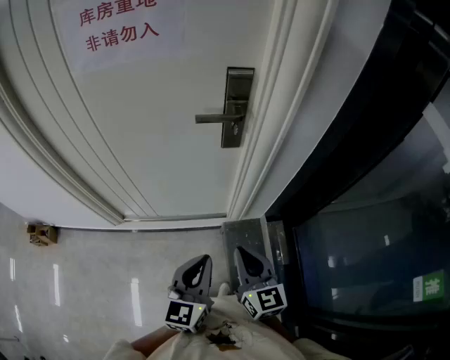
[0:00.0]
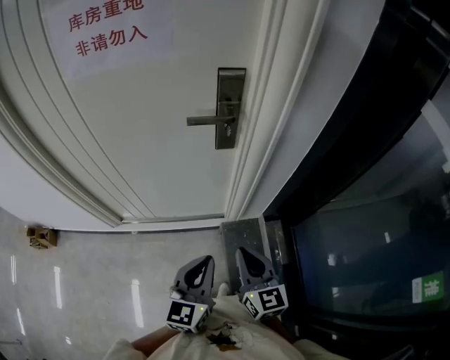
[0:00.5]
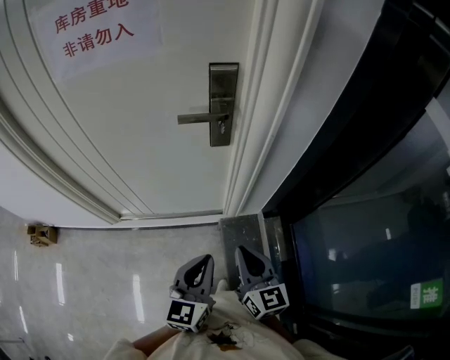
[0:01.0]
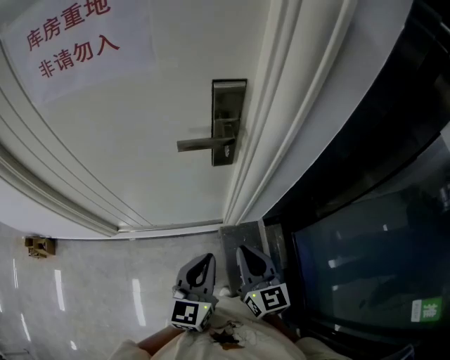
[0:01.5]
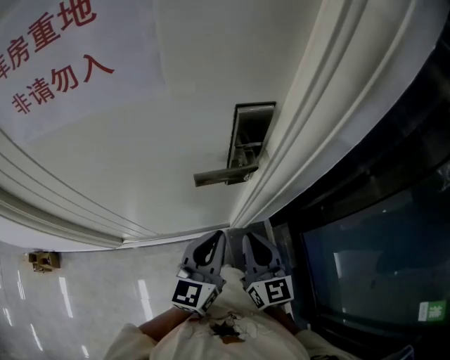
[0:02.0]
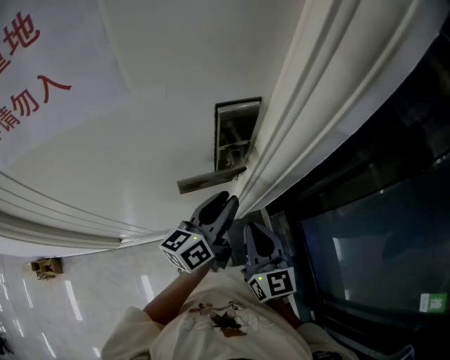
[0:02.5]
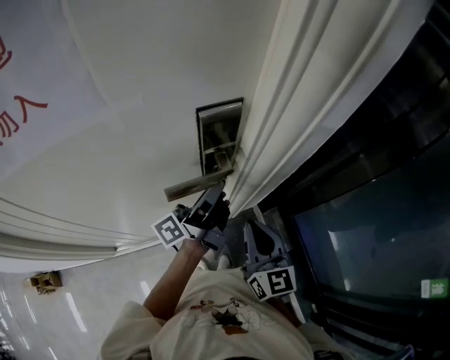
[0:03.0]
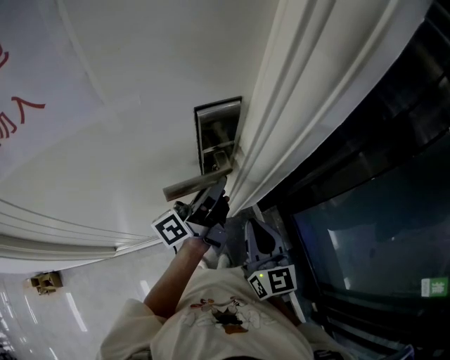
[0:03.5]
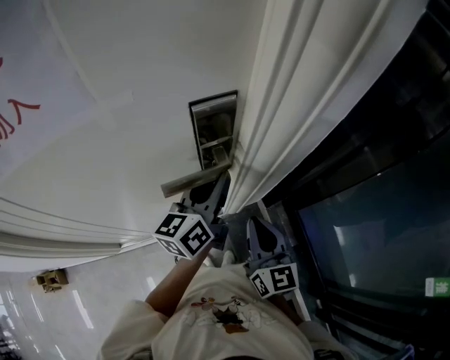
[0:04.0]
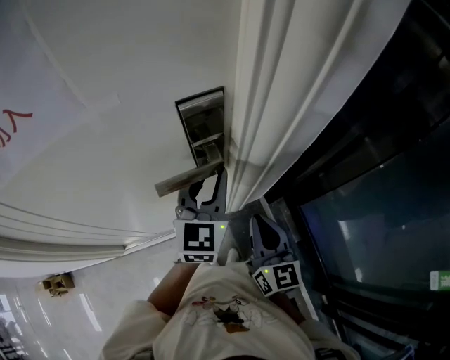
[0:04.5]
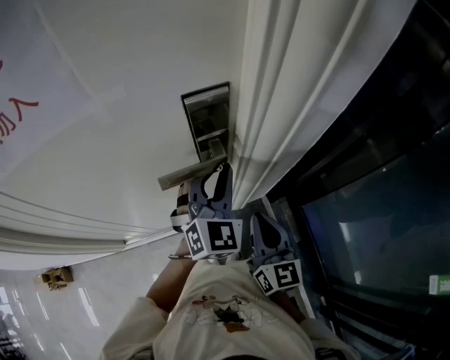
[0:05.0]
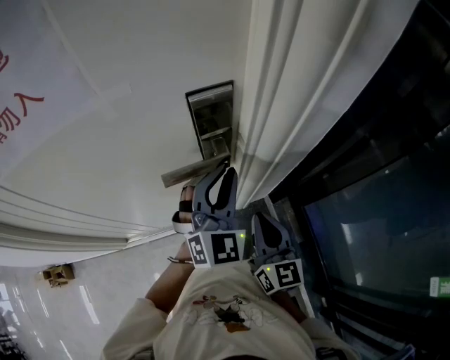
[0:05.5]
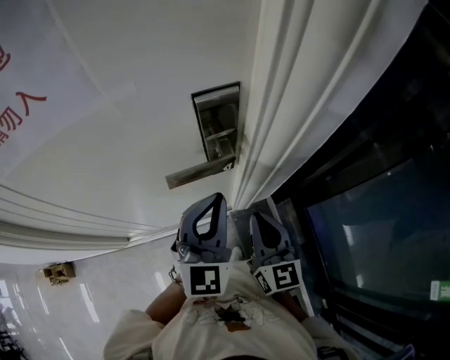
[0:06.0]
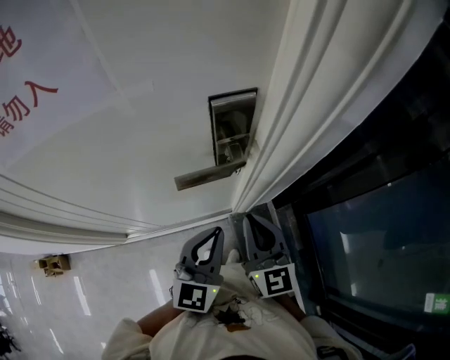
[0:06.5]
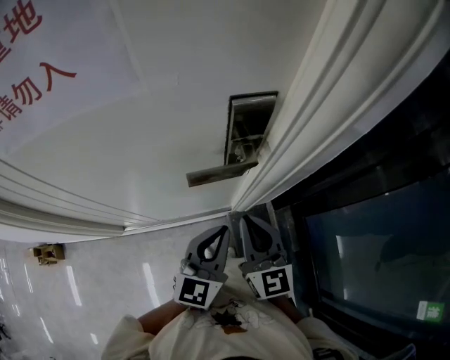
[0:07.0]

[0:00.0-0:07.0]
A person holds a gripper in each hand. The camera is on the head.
0:00.0 to 0:02.0: Both grippers move forward, roughly 20 cm.
0:02.0 to 0:03.5: The left gripper travels forward by about 15 cm, rotates around the line of its fingers by approximately 60 degrees, counterclockwise from behind, and opens its fingers; the right gripper ends up roughly 5 cm from where it was.
0:03.5 to 0:05.0: The left gripper twists roughly 100 degrees clockwise, seen from behind.
0:05.0 to 0:07.0: The right gripper goes approximately 10 cm to the left. The left gripper shifts about 15 cm backward, and rotates roughly 40 degrees.

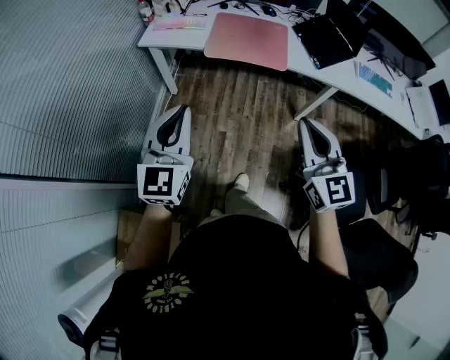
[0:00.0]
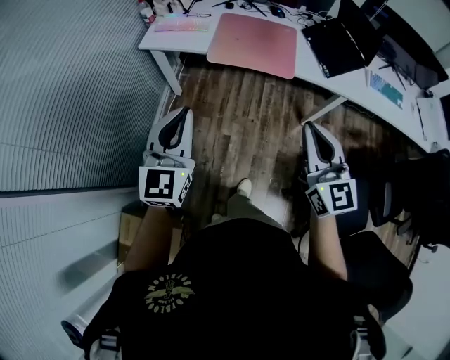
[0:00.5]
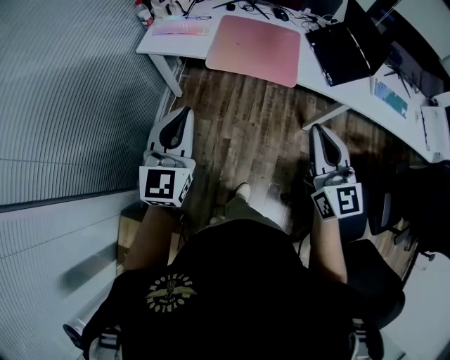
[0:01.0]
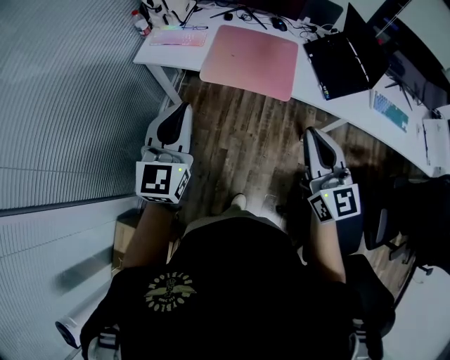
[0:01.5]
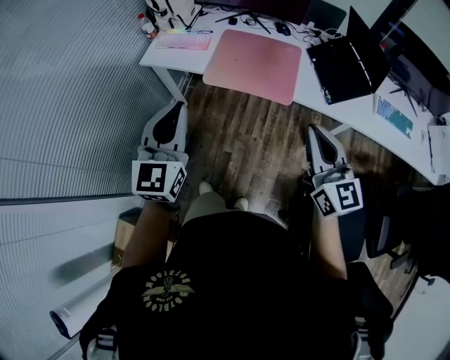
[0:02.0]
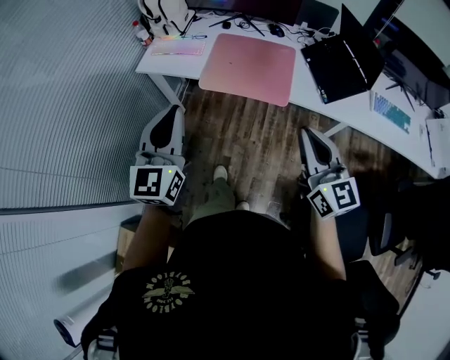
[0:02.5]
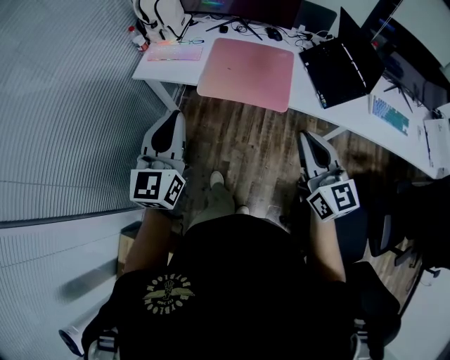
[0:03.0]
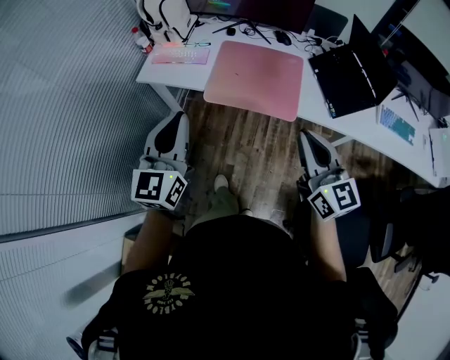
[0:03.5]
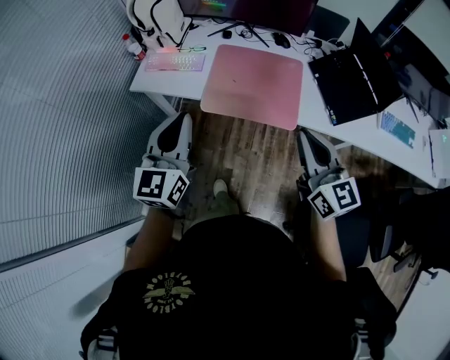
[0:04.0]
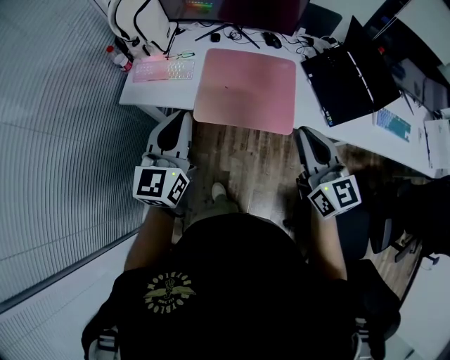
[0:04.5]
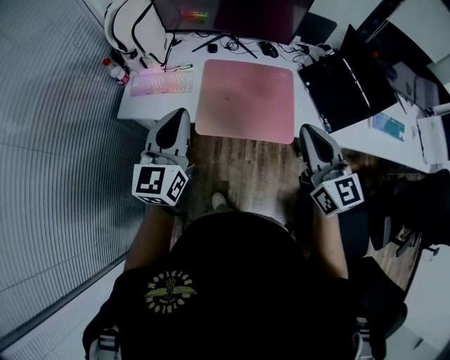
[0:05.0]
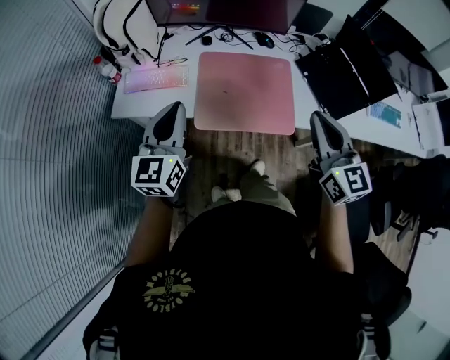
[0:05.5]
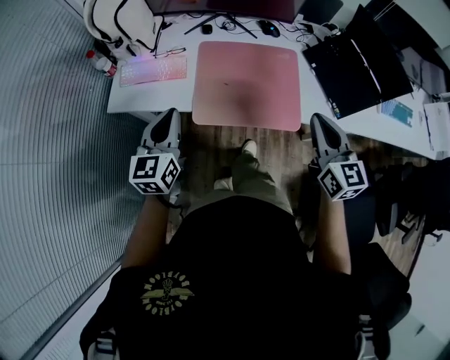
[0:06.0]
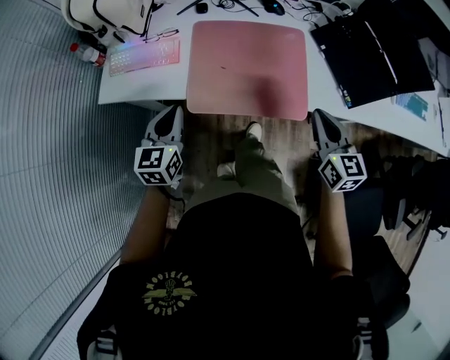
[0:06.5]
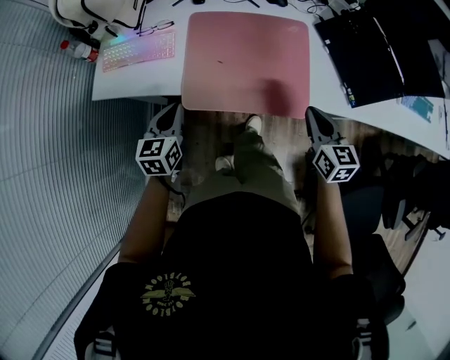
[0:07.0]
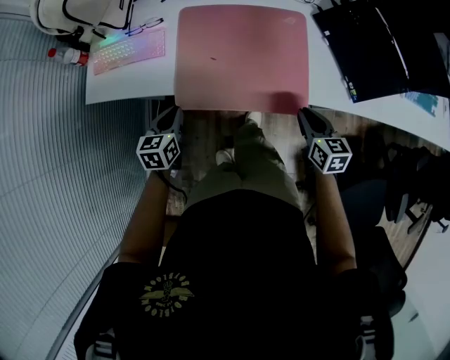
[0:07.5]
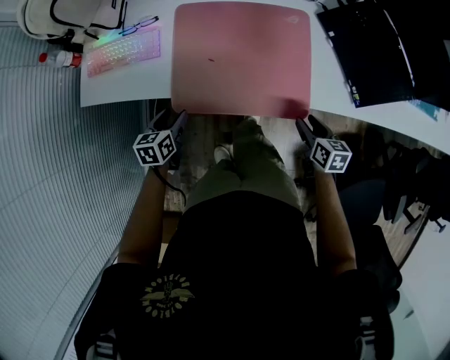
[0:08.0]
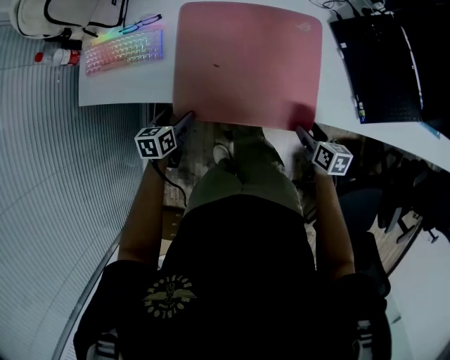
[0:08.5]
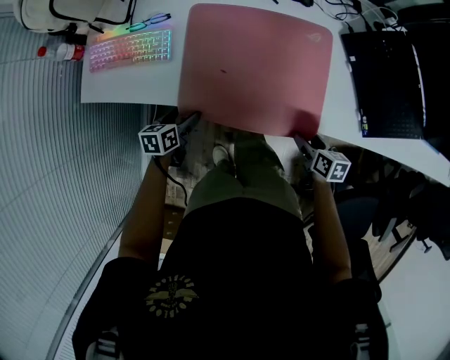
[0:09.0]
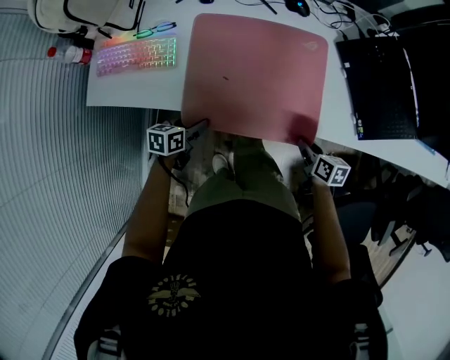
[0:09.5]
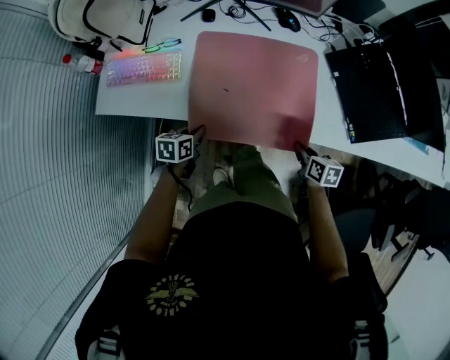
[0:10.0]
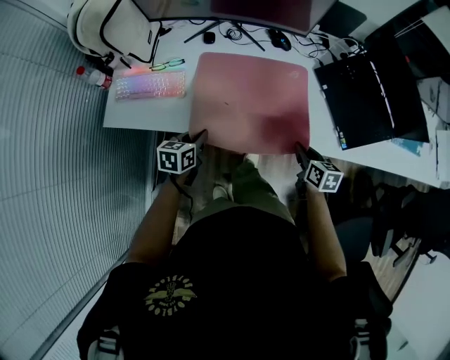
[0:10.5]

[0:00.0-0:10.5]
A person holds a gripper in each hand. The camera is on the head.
0:00.0 to 0:02.0: Both grippers move forward and to the right, approximately 20 cm.
0:02.0 to 0:04.0: The two grippers go about 15 cm forward.
0:04.0 to 0:06.5: Both grippers travel together downward and forward, about 25 cm. The left gripper changes its angle by approximately 20 degrees. The right gripper swivels approximately 20 degrees.
0:06.5 to 0:08.5: The grippers both shift downward by about 25 cm. The right gripper rotates approximately 40 degrees, and opens its fingers; the left gripper changes its angle by roughly 40 degrees, and opens up.
0:08.5 to 0:10.5: The two grippers go about 10 cm upward. The left gripper closes its fingers, while the right gripper closes its fingers.

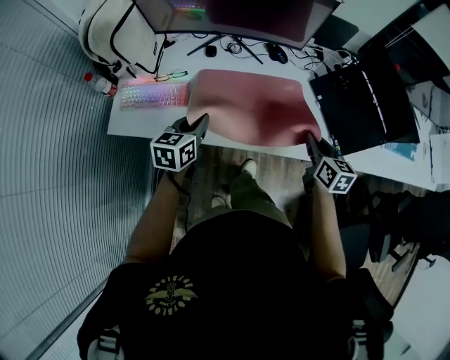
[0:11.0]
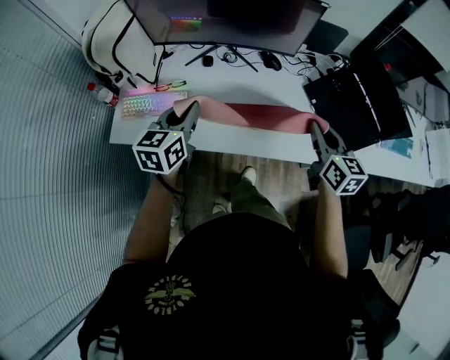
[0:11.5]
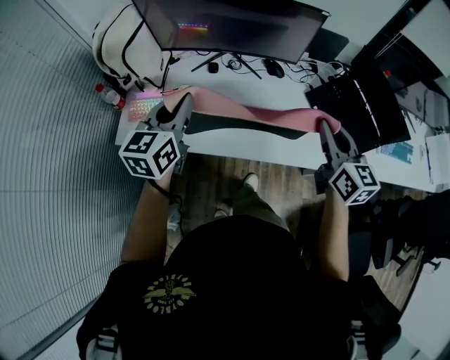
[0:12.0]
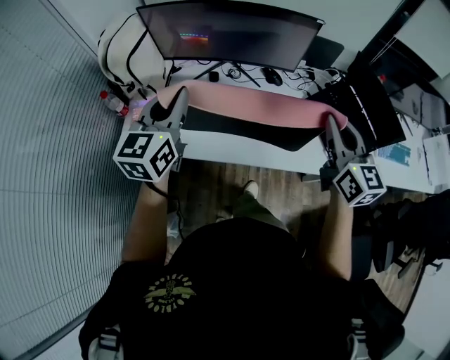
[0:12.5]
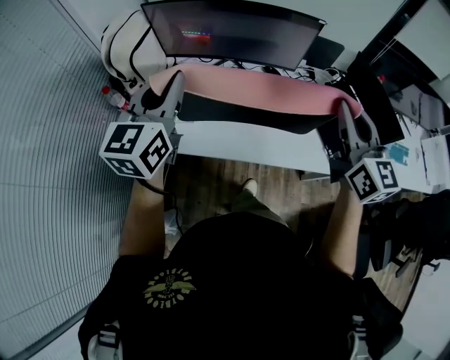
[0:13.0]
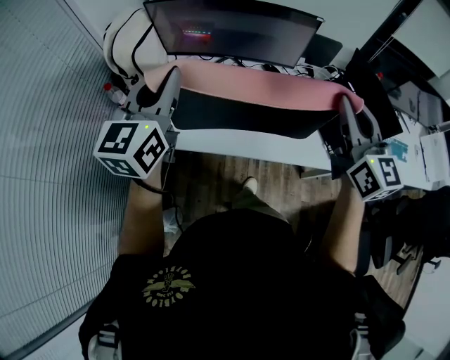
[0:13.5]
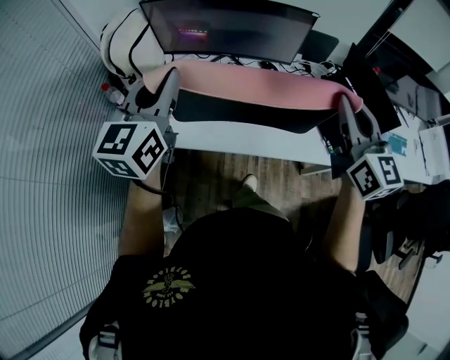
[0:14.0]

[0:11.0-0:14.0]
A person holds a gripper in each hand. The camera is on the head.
0:11.0 to 0:12.5: The two grippers go approximately 25 cm upward. The right gripper changes its angle by roughly 30 degrees. Meanwhile the left gripper swivels roughly 30 degrees.
0:12.5 to 0:14.0: Both grippers move upward, about 10 cm.

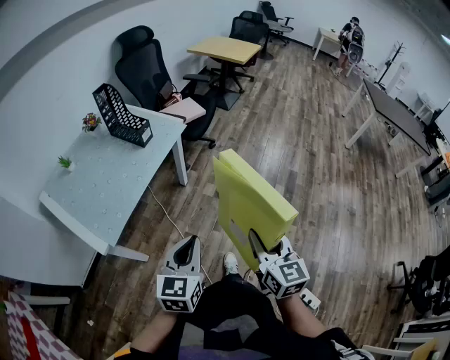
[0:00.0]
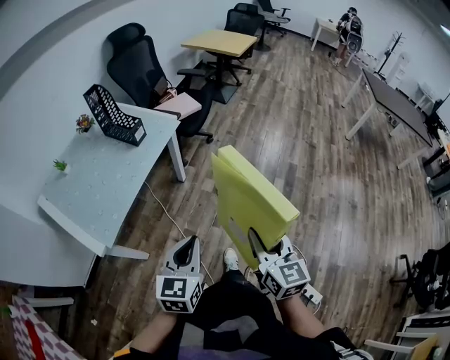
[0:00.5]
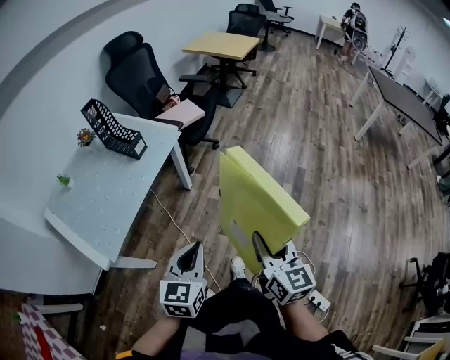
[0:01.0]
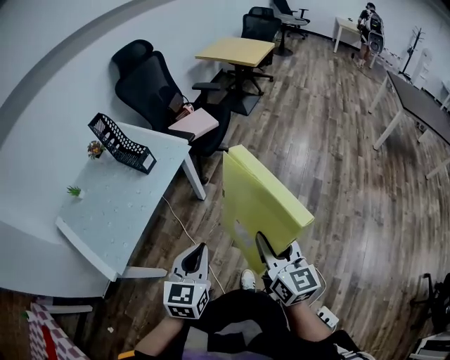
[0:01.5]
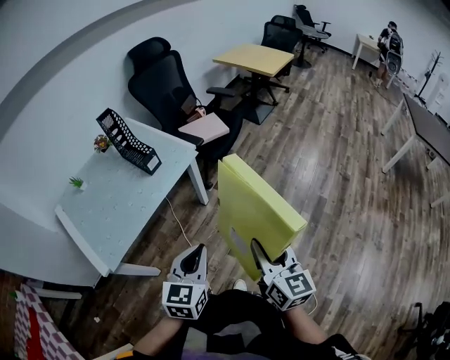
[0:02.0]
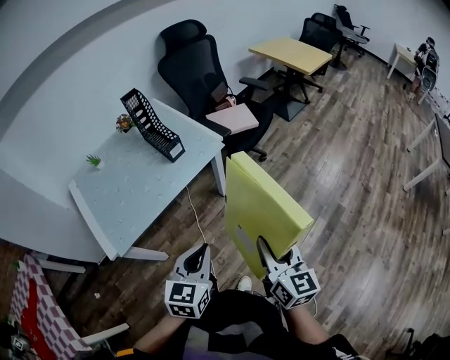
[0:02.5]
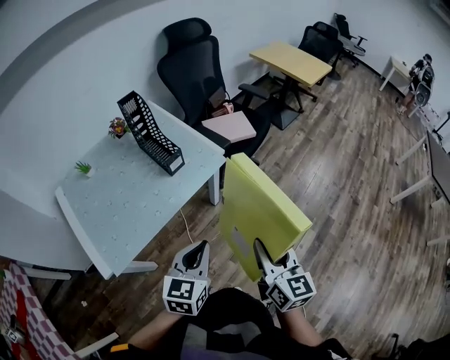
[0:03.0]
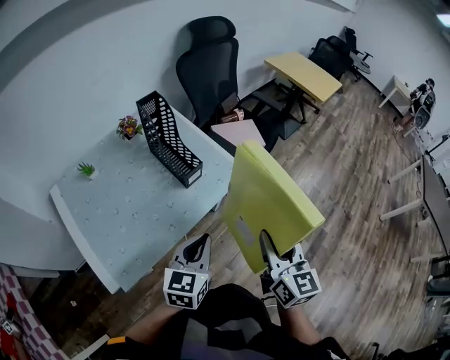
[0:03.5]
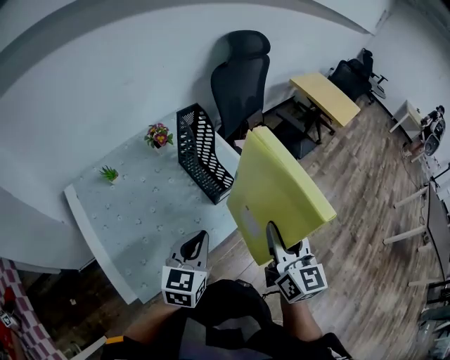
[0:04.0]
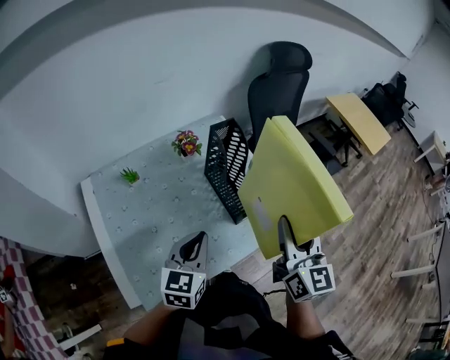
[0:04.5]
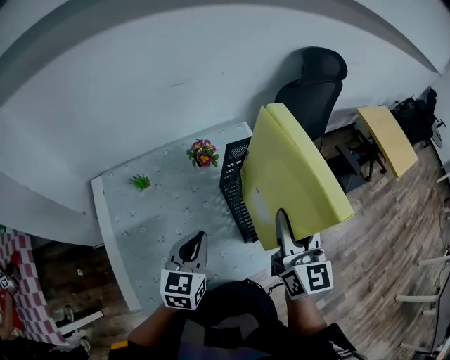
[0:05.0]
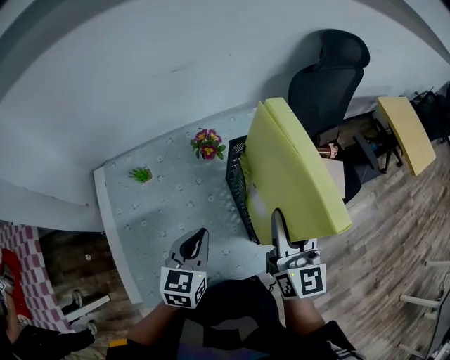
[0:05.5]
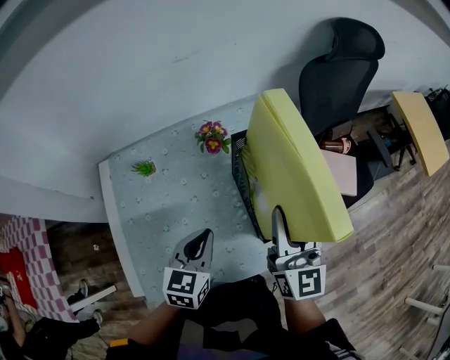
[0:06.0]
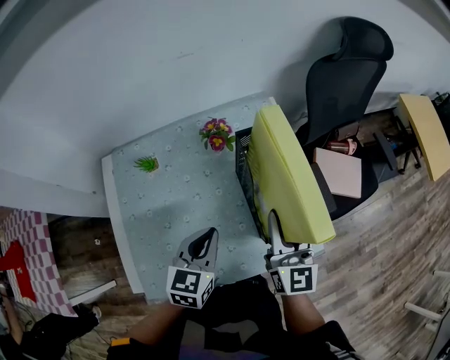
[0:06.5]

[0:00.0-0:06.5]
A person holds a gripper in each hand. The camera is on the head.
0:00.0 to 0:02.0: The grippers both shift forward and to the right by roughly 20 cm.
0:02.0 to 0:04.5: The two grippers travel together, forward and to the left, approximately 50 cm. The right gripper turns by about 20 degrees. Meanwhile the left gripper rotates about 20 degrees.
0:04.5 to 0:06.5: The right gripper heads forward and downward, covering roughly 20 cm. The left gripper goes approximately 10 cm forward and downward.
